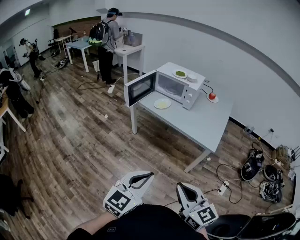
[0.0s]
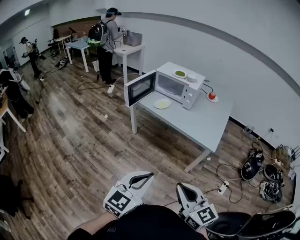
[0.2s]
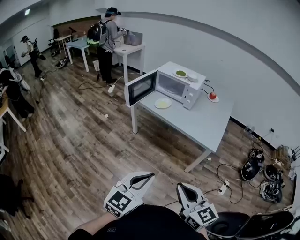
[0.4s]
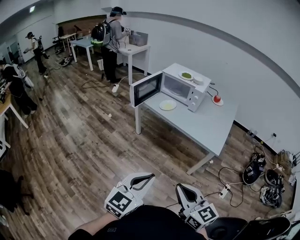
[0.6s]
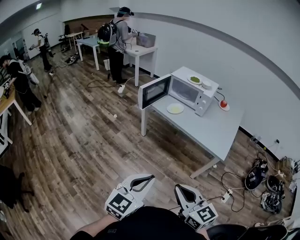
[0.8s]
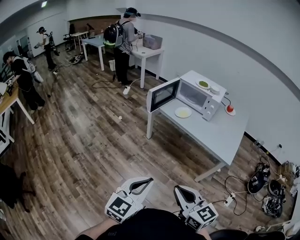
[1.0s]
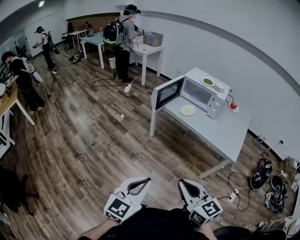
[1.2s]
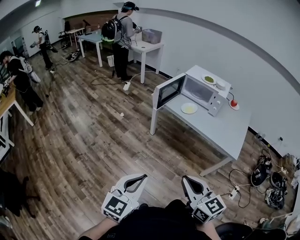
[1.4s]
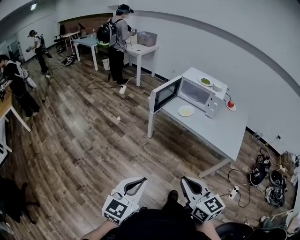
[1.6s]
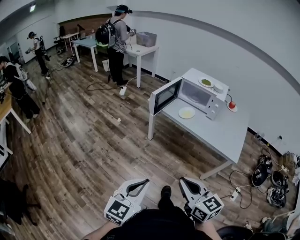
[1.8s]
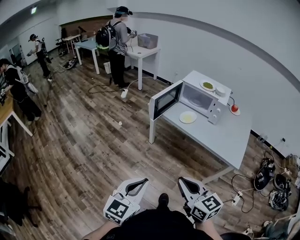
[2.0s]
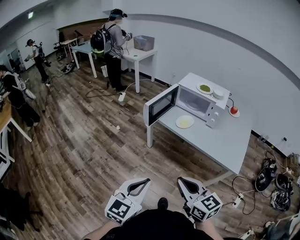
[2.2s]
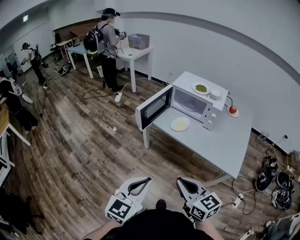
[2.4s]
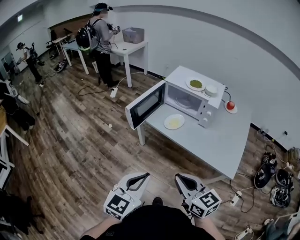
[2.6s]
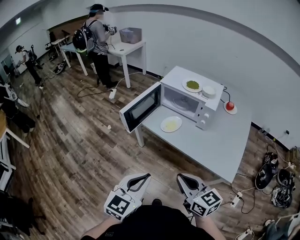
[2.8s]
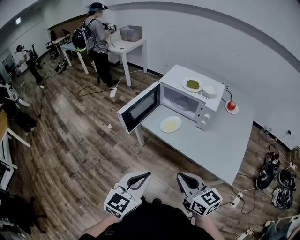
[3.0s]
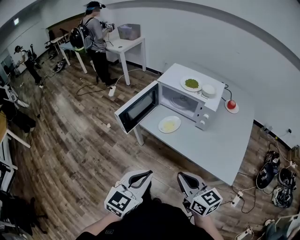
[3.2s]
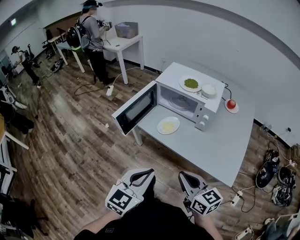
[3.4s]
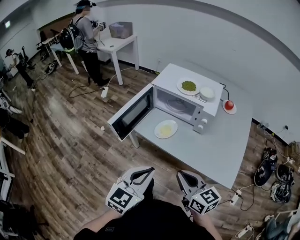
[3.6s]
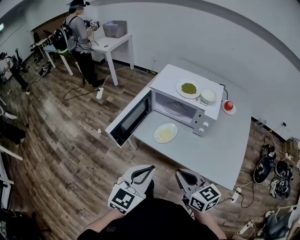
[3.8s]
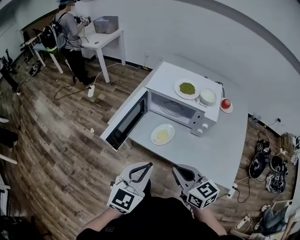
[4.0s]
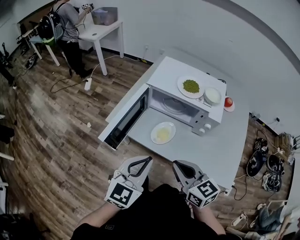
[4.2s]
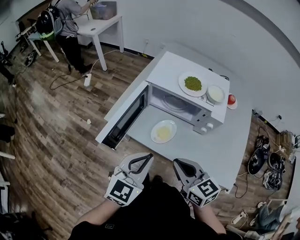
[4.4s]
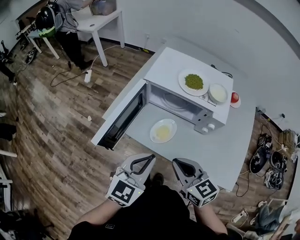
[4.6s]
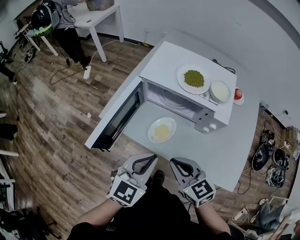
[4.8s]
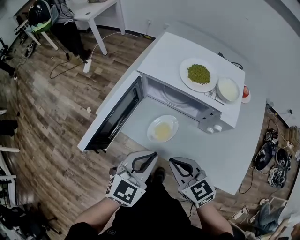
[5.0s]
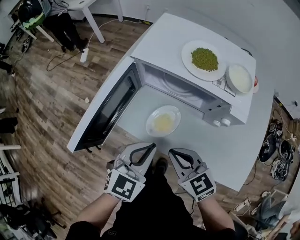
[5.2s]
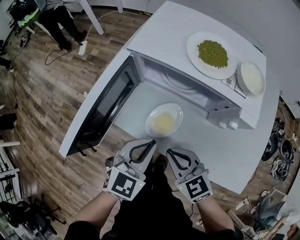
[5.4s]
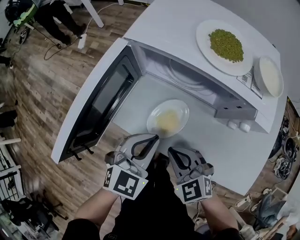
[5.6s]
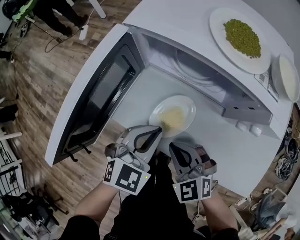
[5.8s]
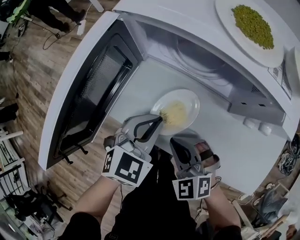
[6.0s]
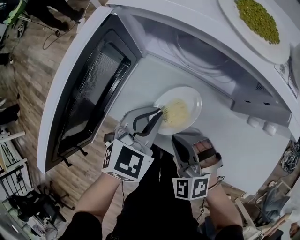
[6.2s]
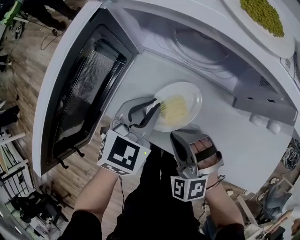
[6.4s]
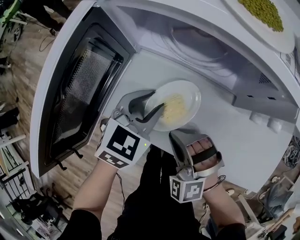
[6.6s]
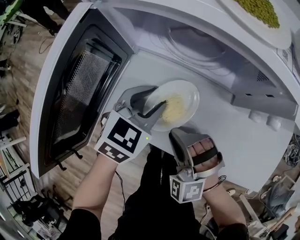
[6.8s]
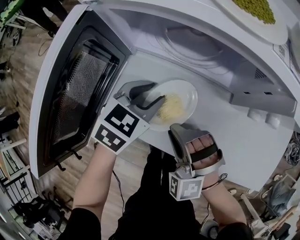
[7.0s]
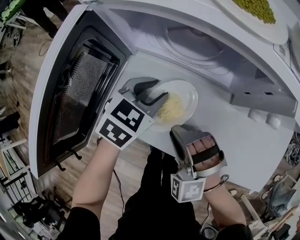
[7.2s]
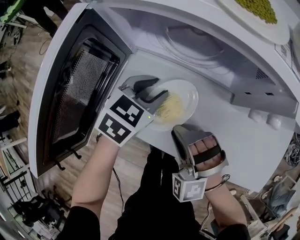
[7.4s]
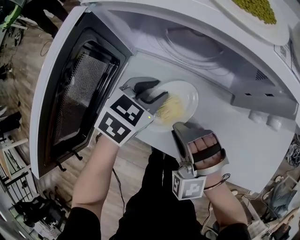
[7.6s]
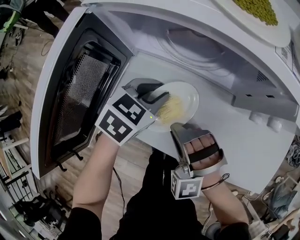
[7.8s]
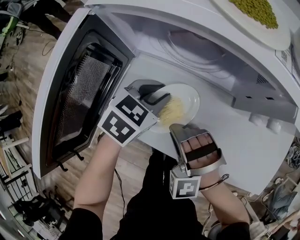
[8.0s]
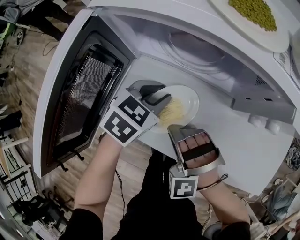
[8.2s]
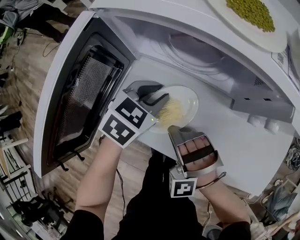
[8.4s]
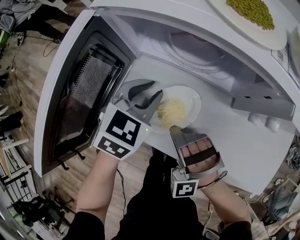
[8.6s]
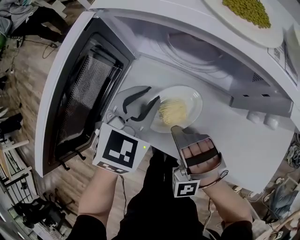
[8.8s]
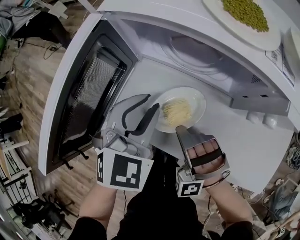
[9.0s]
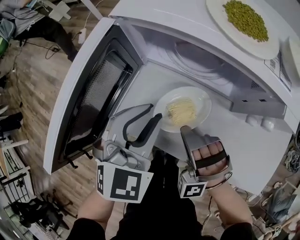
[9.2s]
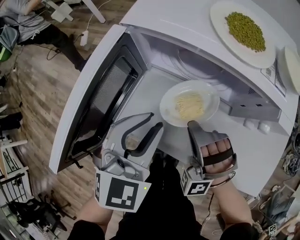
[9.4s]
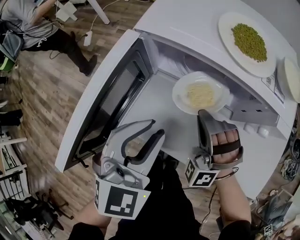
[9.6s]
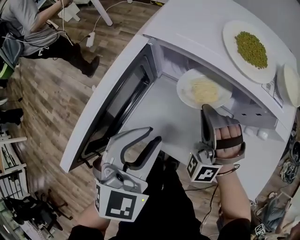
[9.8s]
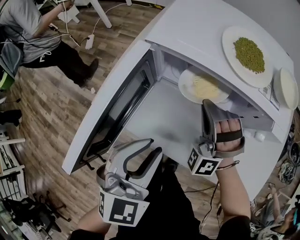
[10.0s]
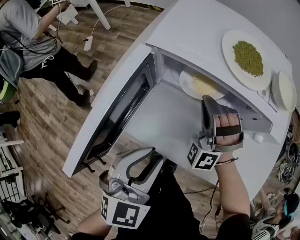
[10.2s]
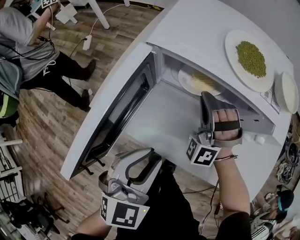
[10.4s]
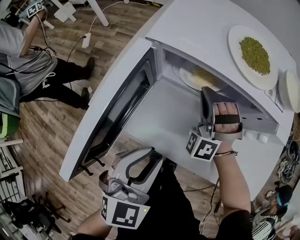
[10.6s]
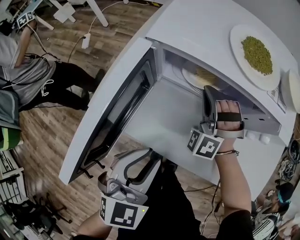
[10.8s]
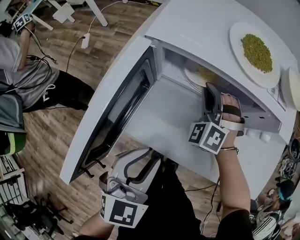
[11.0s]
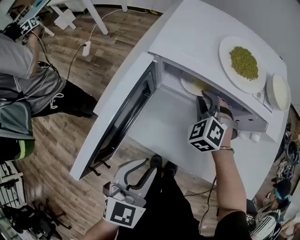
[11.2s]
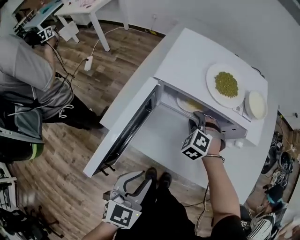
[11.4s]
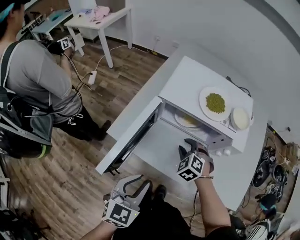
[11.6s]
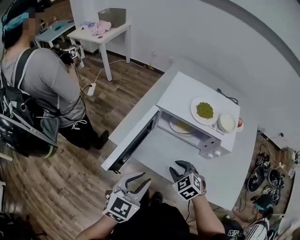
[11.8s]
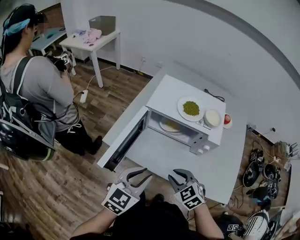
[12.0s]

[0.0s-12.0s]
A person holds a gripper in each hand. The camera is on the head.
0.0s to 1.6s: The left gripper moves to the left, approximately 20 cm; the right gripper shifts approximately 20 cm to the left and forward.
1.6s to 3.0s: Both grippers travel together forward and to the right, roughly 35 cm.
3.0s to 4.4s: The grippers both shift forward by some 25 cm.
4.4s to 6.0s: Both grippers travel together downward and forward, approximately 30 cm. The right gripper rolls counterclockwise, seen from behind, by some 40 degrees. The left gripper turns by approximately 20 degrees.
6.0s to 7.6s: The right gripper turns by roughly 30 degrees, while the left gripper heads forward and downward, covering about 10 cm, and opens up.
7.6s to 9.0s: The left gripper moves upward, some 10 cm, and changes its angle by some 30 degrees.
9.0s to 10.4s: The left gripper moves backward and upward, approximately 10 cm. Meanwhile the right gripper is displaced forward and upward by about 20 cm.
10.4s to 12.0s: The right gripper is displaced backward by about 25 cm, points its fingers some 30 degrees further downward, and opens its fingers. Meanwhile the left gripper goes some 15 cm upward and backward.

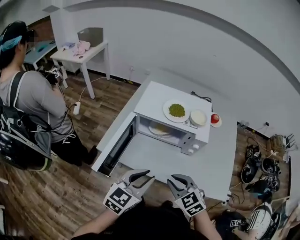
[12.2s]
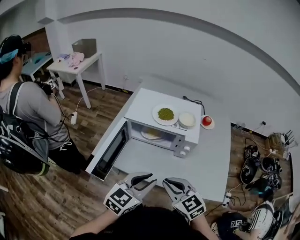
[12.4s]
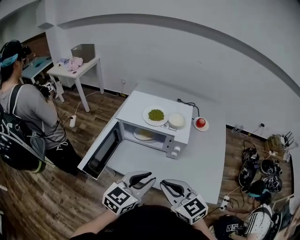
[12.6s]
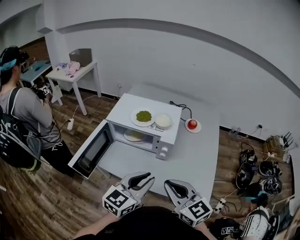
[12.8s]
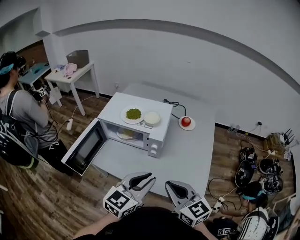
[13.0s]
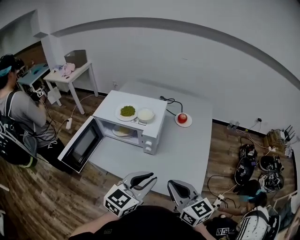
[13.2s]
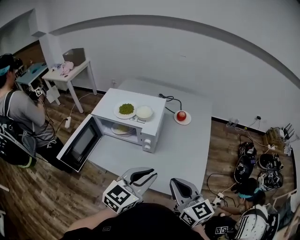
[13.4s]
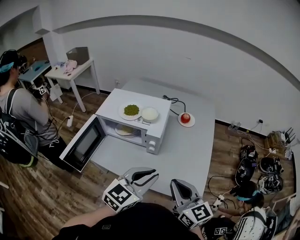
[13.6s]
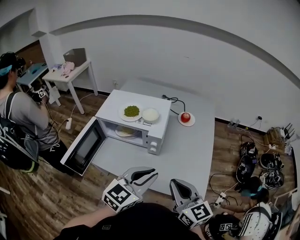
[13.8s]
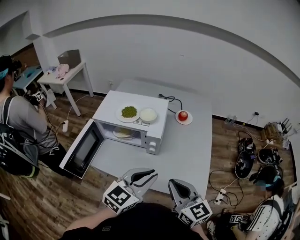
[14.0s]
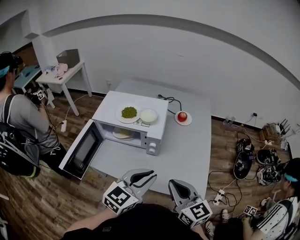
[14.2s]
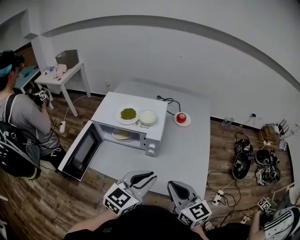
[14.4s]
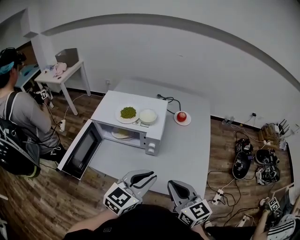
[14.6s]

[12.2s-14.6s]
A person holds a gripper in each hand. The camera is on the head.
12.2s to 13.4s: Both grippers move to the right, roughly 30 cm. The right gripper tilts its fingers roughly 30 degrees upward.
13.4s to 14.6s: The right gripper shifts some 5 cm to the left.

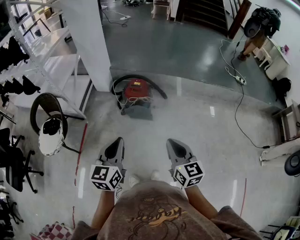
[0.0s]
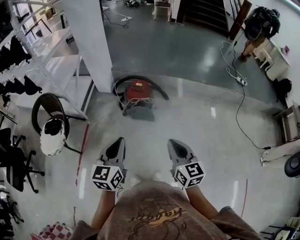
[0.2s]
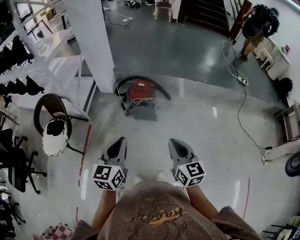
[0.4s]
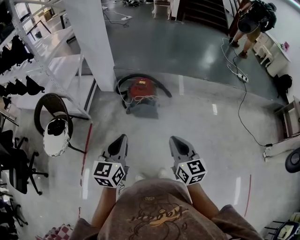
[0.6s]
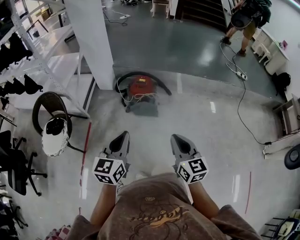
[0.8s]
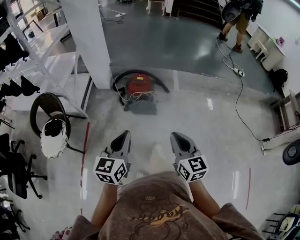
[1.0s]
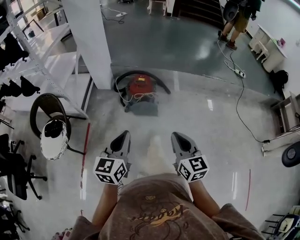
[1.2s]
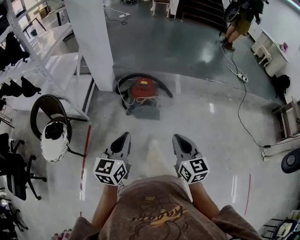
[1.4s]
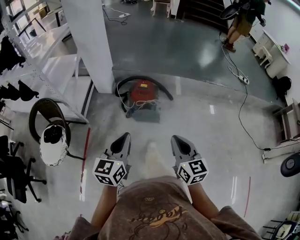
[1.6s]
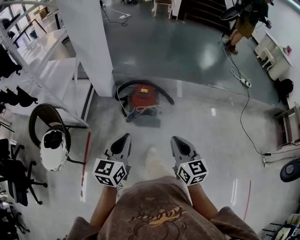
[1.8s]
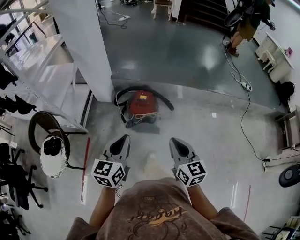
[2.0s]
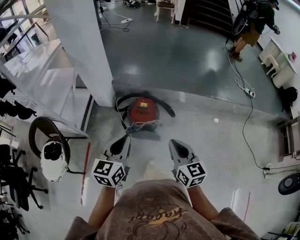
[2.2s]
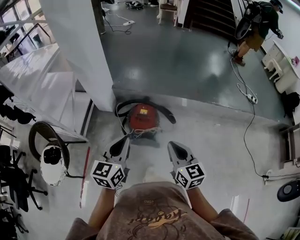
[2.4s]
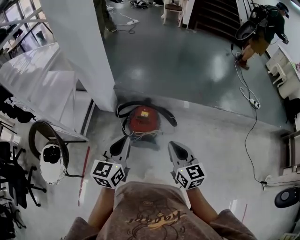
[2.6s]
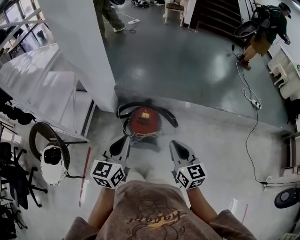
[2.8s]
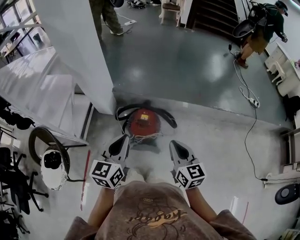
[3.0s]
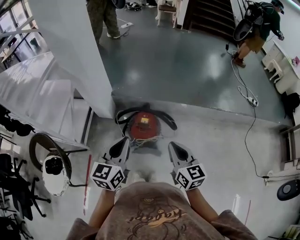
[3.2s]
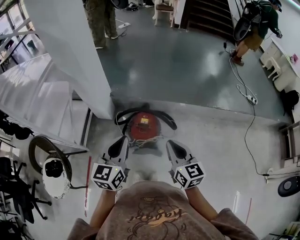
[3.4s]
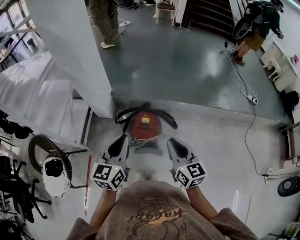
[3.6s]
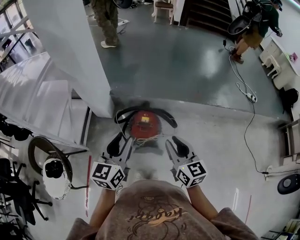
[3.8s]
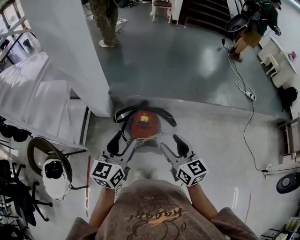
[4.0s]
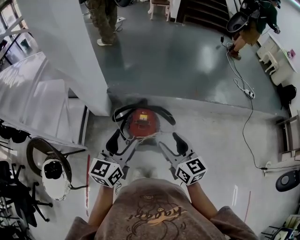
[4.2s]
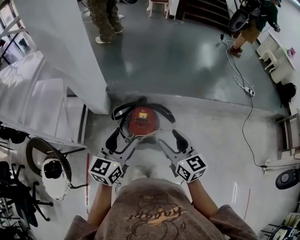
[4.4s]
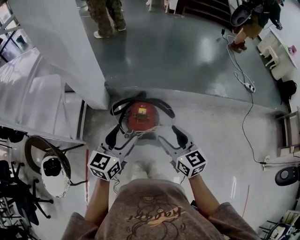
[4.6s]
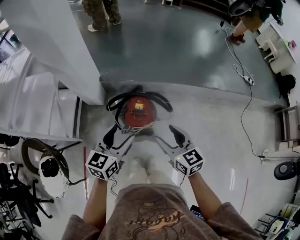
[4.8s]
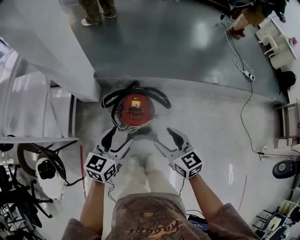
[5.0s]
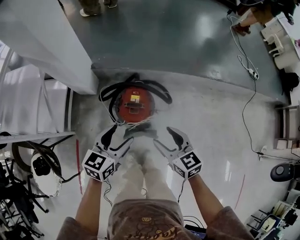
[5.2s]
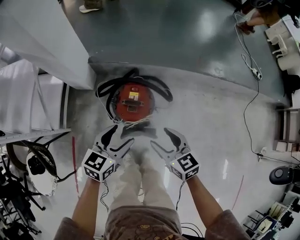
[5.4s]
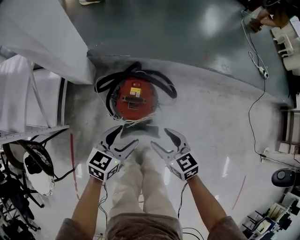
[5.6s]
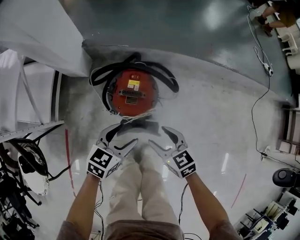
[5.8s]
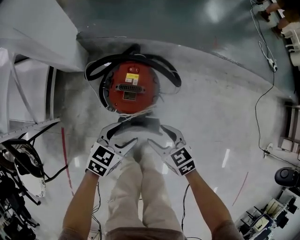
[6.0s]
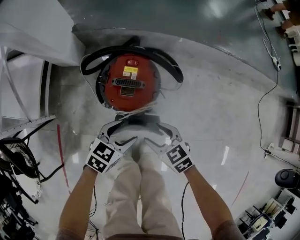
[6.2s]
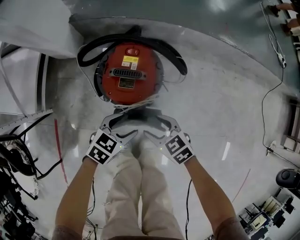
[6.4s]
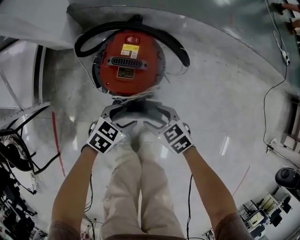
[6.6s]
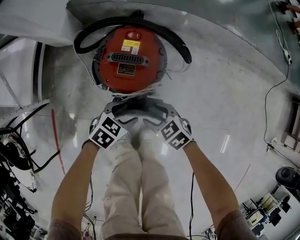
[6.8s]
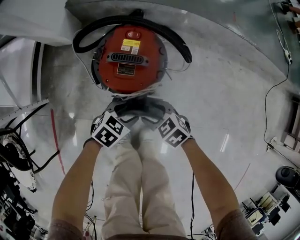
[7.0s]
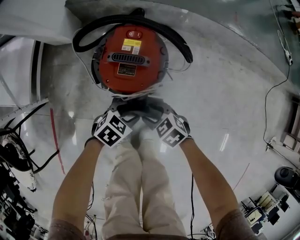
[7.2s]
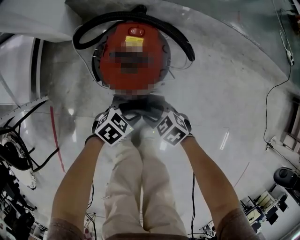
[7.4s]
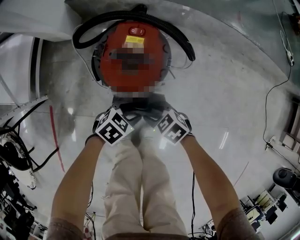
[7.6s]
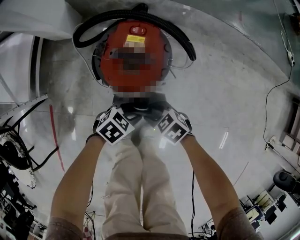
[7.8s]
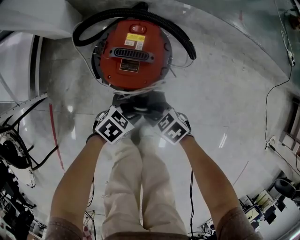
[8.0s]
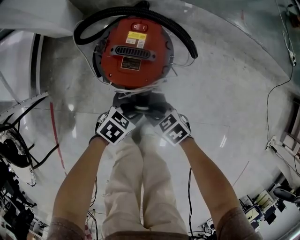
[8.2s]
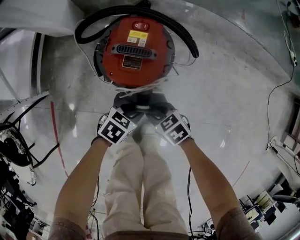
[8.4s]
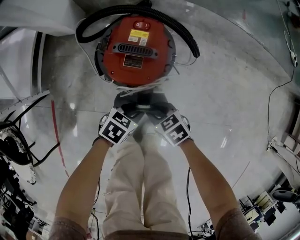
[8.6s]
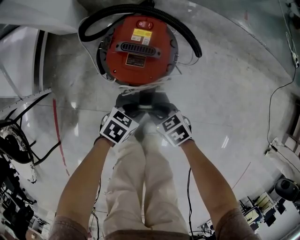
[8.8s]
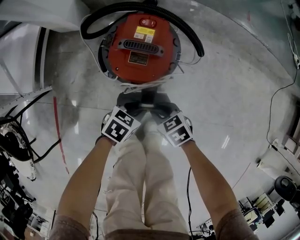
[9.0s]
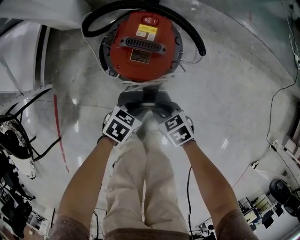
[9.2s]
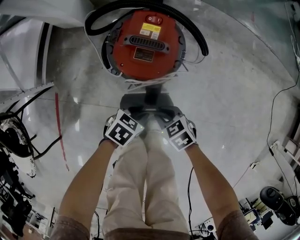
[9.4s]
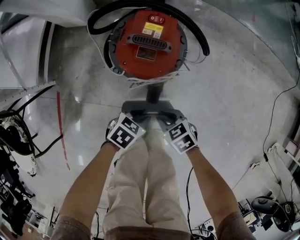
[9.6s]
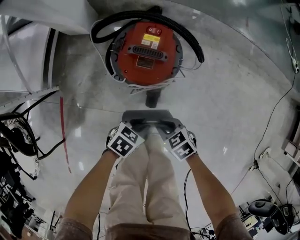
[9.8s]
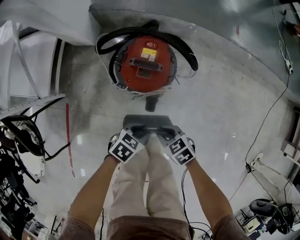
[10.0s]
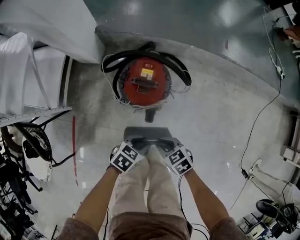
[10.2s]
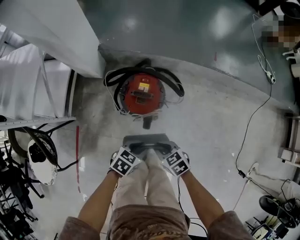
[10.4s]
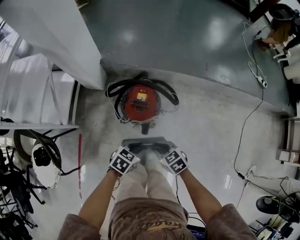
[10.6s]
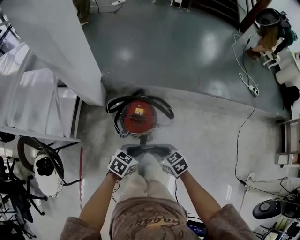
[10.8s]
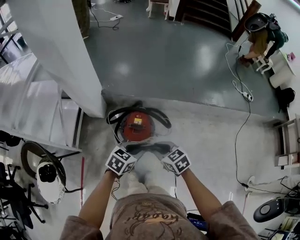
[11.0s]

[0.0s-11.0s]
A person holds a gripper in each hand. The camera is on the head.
0.0s to 1.6s: The left gripper is displaced forward and to the left by some 10 cm. The right gripper travels to the left and forward by approximately 10 cm.
1.6s to 3.2s: The grippers both shift forward by about 30 cm.
3.2s to 4.8s: Both grippers move downward, roughly 5 cm. The right gripper opens up; the left gripper opens up.
4.8s to 6.2s: Both grippers move downward, roughly 40 cm. The left gripper swivels approximately 30 degrees. The right gripper swivels some 30 degrees.
6.2s to 7.8s: The grippers both shift downward by roughly 15 cm. The right gripper turns by some 20 degrees, and closes up.
7.8s to 9.4s: The left gripper closes its fingers. The right gripper closes.
9.4s to 11.0s: The grippers both shift upward by approximately 50 cm. The right gripper rotates roughly 20 degrees, while the left gripper rotates approximately 20 degrees.
